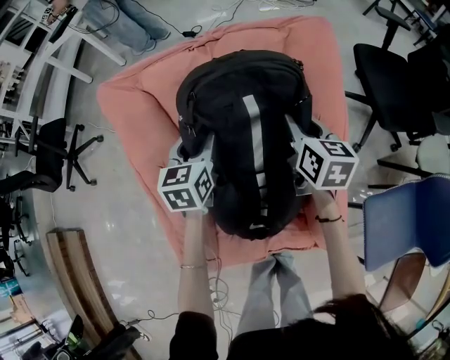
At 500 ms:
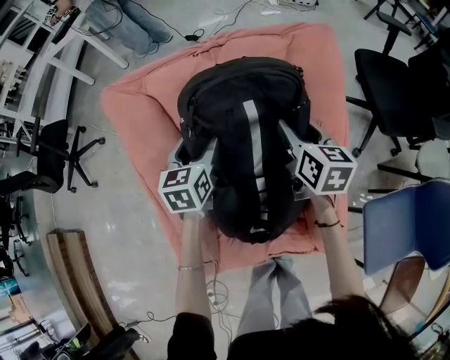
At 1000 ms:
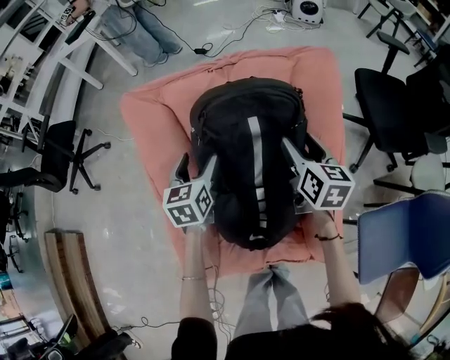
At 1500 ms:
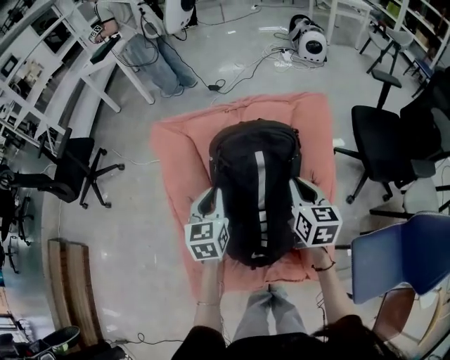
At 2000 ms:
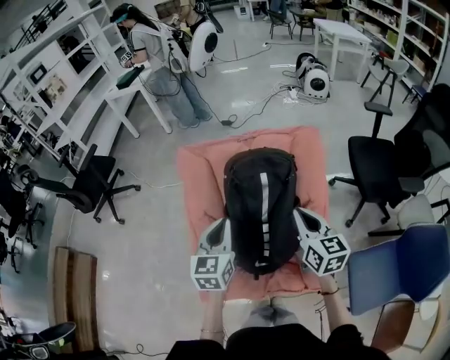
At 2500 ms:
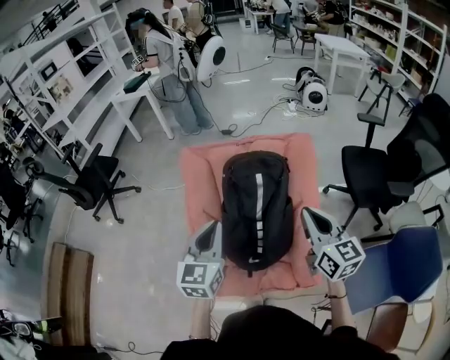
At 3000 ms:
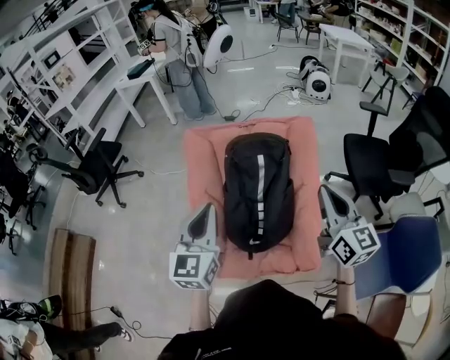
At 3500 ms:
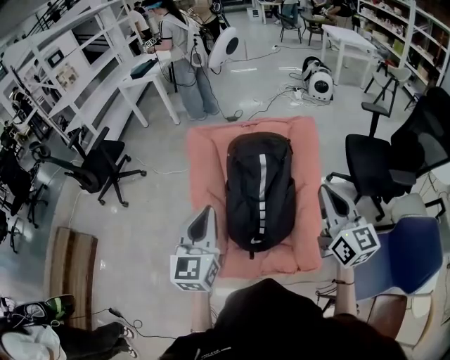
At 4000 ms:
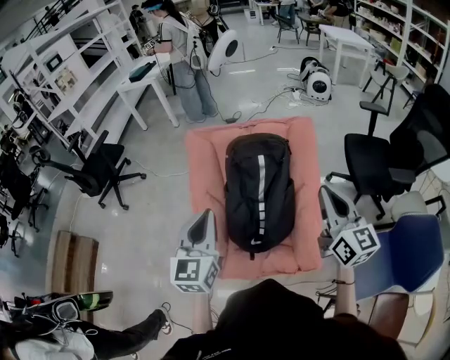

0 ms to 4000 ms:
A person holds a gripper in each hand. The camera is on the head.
0 ms to 2000 ms: Both grippers travel together upward and backward, approximately 25 cm. The right gripper opens, then closes again; the left gripper closes.
2000 ms to 4000 ms: The left gripper is displaced backward and upward by roughly 15 cm; the right gripper shifts about 20 cm upward, backward and to the right.

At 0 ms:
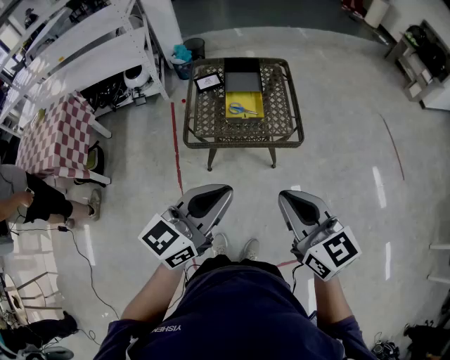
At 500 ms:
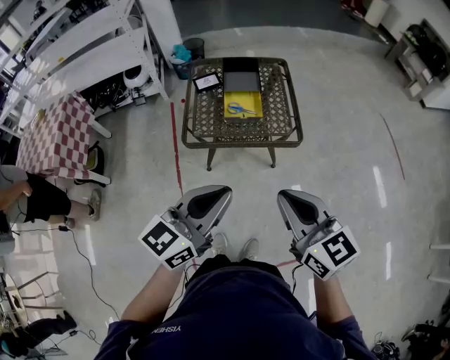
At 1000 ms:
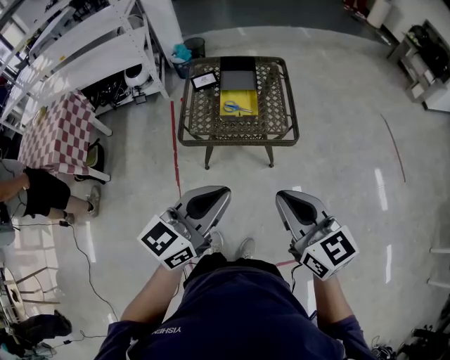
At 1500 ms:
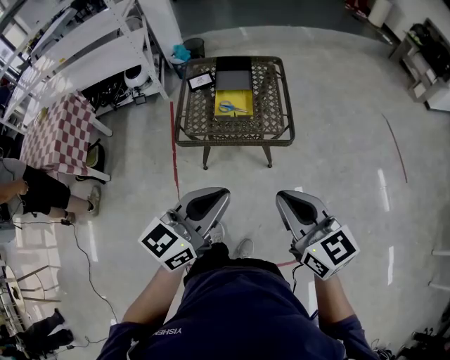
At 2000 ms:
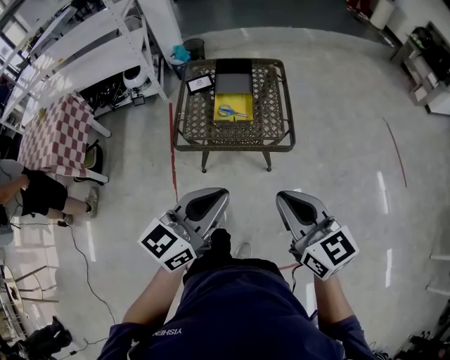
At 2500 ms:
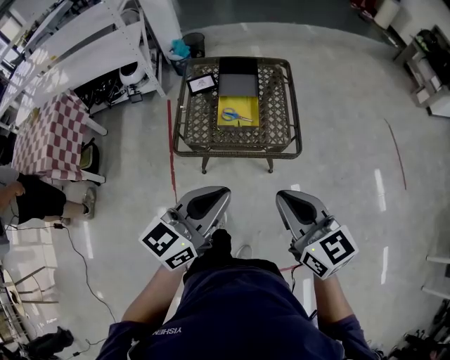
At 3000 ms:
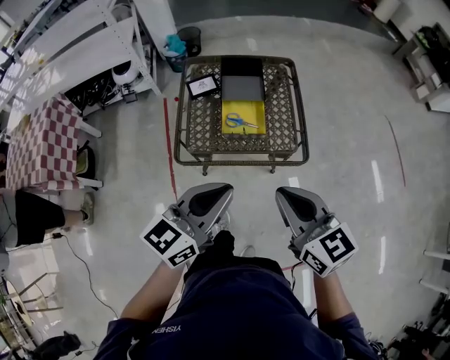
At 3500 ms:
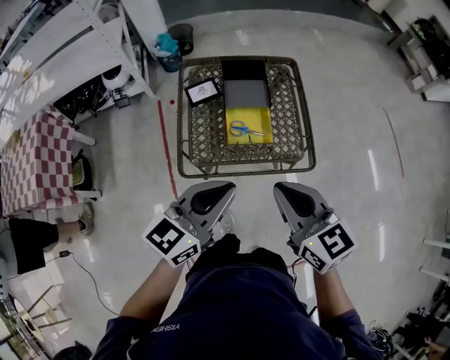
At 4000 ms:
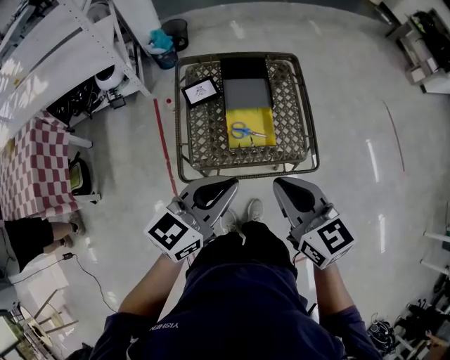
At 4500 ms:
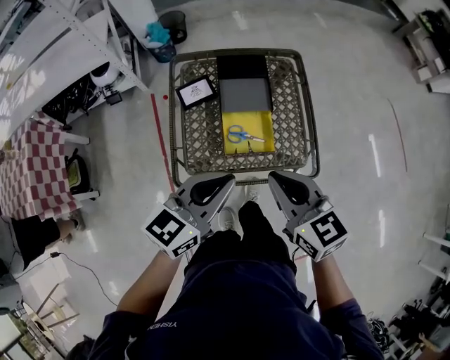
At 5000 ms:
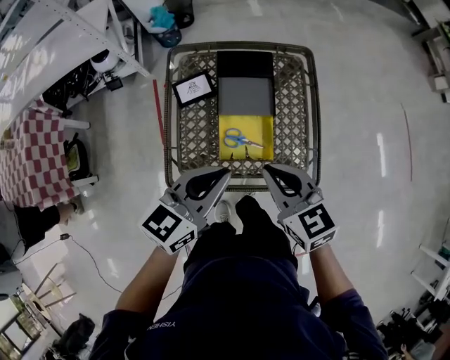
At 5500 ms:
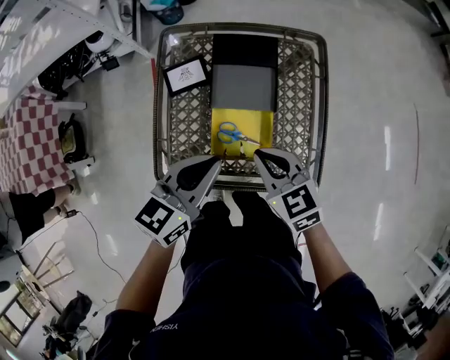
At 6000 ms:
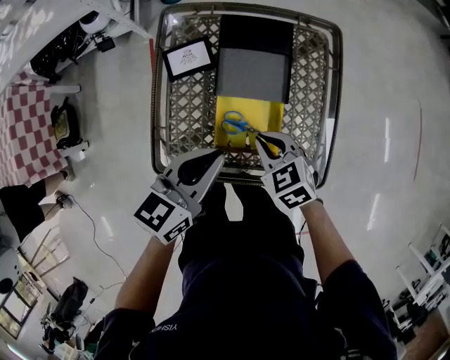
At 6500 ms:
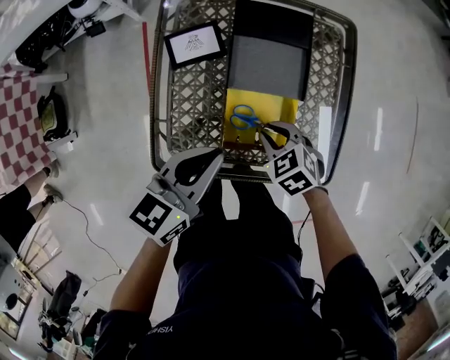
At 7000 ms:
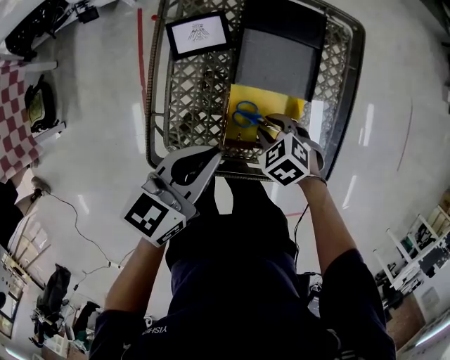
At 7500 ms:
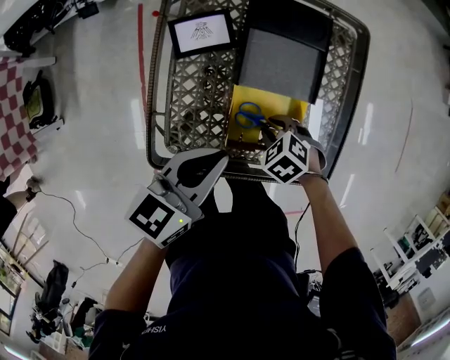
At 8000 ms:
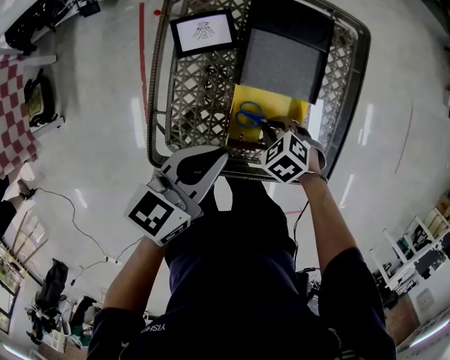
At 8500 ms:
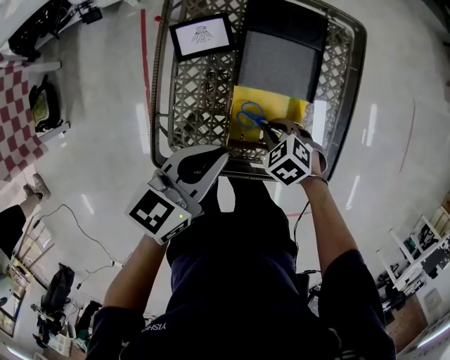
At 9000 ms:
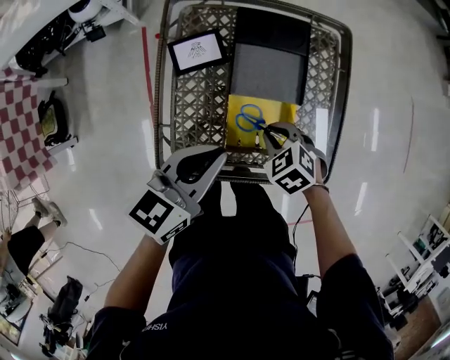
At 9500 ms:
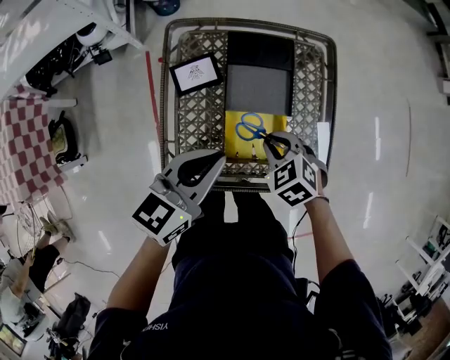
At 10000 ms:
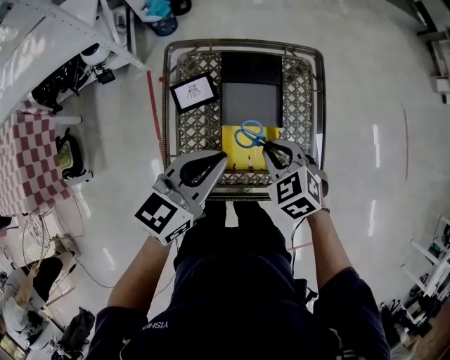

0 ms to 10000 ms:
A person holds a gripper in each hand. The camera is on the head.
0 ms to 2000 ms: Both grippers travel together to the right, some 10 cm.
2000 ms to 4000 ms: The grippers both shift forward and to the left by roughly 30 cm.
4000 ms to 6000 ms: The right gripper moves downward and forward, some 35 cm, and tips its fingers downward by approximately 30 degrees, while the left gripper travels forward and downward by about 25 cm, and rotates some 20 degrees.
6000 ms to 8000 ms: The right gripper travels downward by some 15 cm, and turns by roughly 30 degrees; the left gripper shifts by some 5 cm.
8000 ms to 10000 ms: The right gripper is displaced upward by approximately 20 cm, and changes its angle by about 30 degrees. Meanwhile the left gripper goes roughly 15 cm upward.

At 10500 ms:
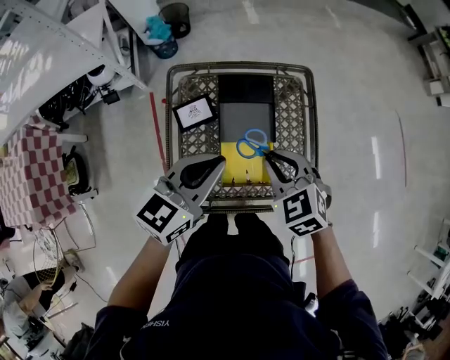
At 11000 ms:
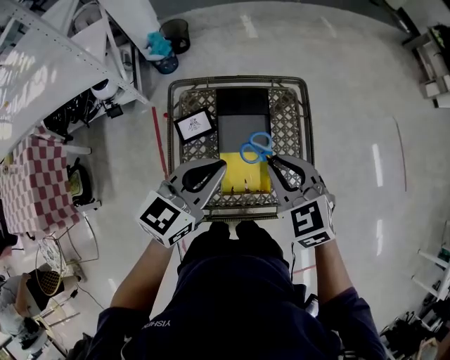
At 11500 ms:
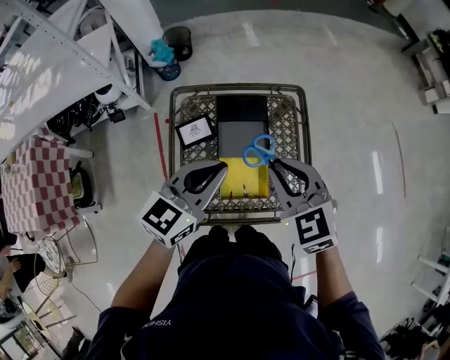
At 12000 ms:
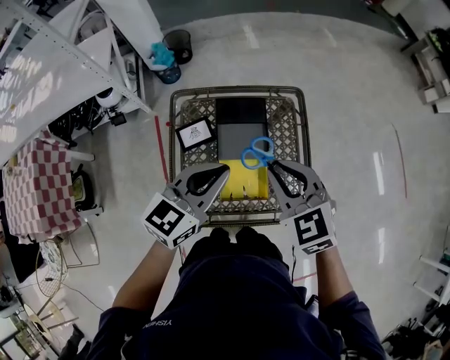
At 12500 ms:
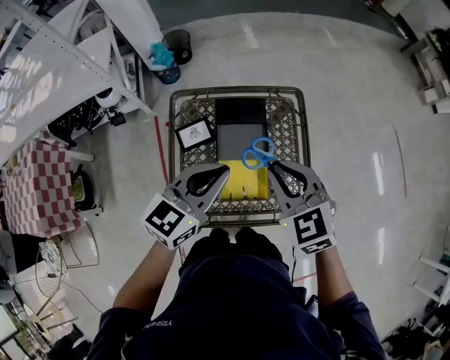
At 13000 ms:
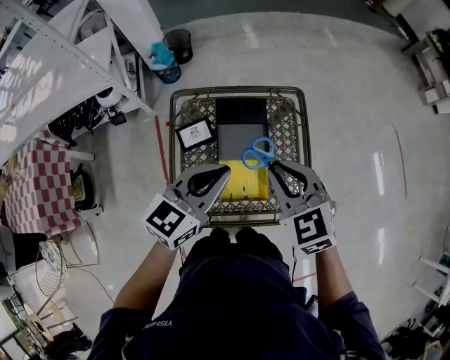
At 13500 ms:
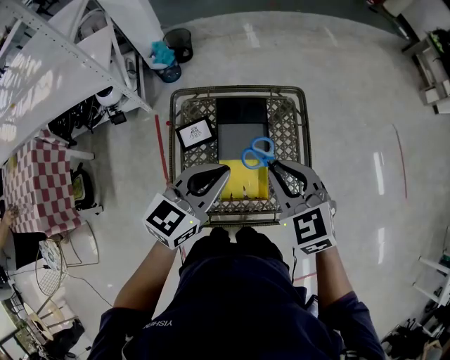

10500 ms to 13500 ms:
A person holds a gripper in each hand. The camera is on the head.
10500 ms to 12000 ms: The right gripper travels upward by some 10 cm, while the left gripper changes place by some 5 cm.
12000 ms to 13500 ms: Both grippers stay about where they are.

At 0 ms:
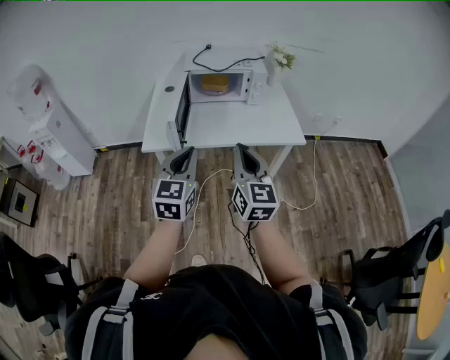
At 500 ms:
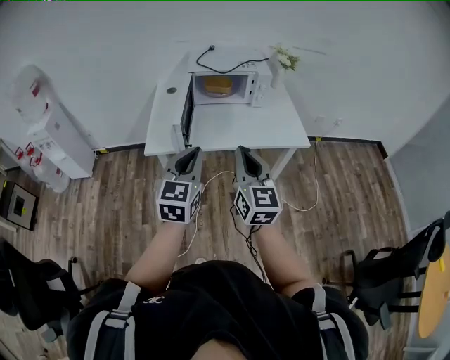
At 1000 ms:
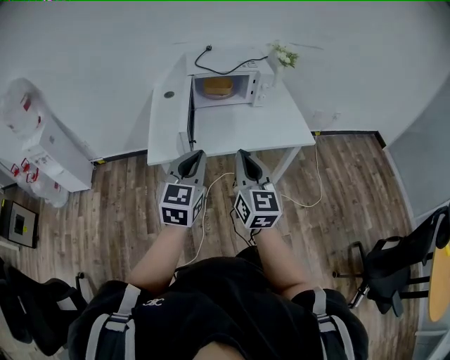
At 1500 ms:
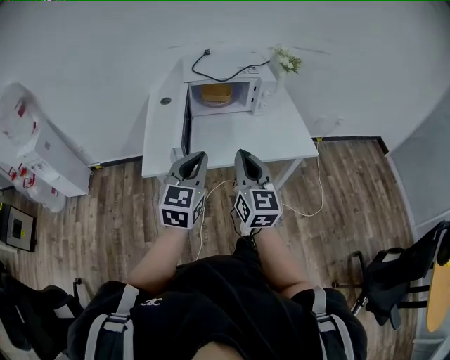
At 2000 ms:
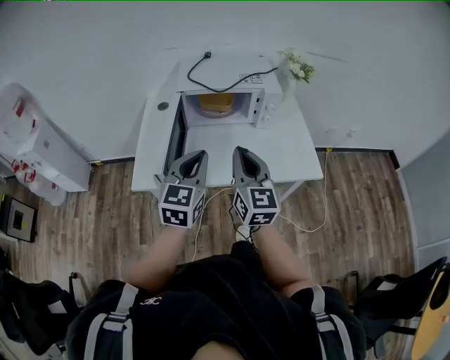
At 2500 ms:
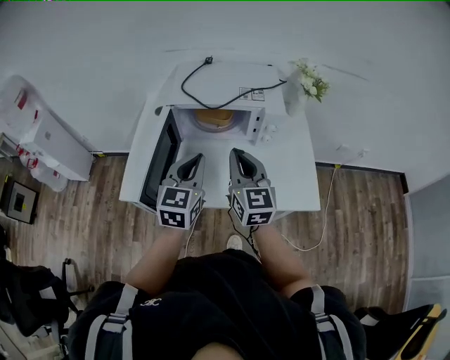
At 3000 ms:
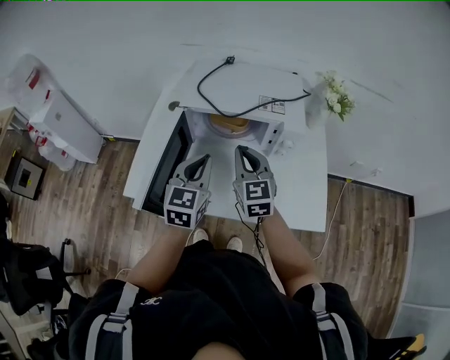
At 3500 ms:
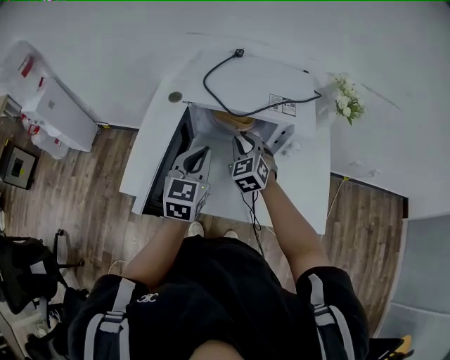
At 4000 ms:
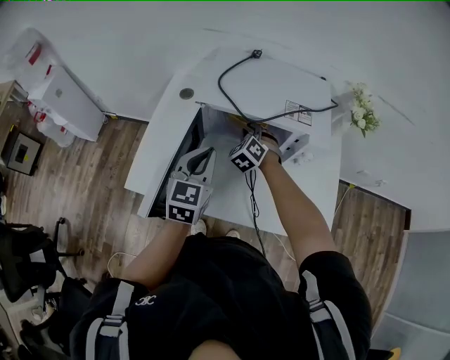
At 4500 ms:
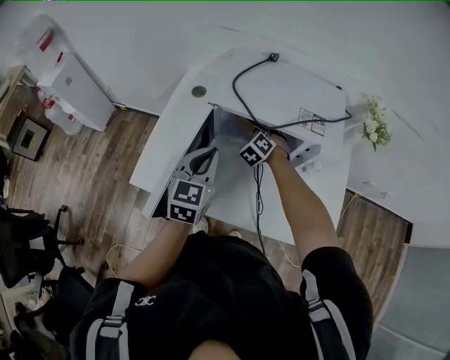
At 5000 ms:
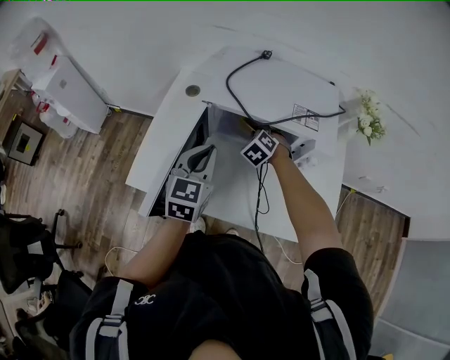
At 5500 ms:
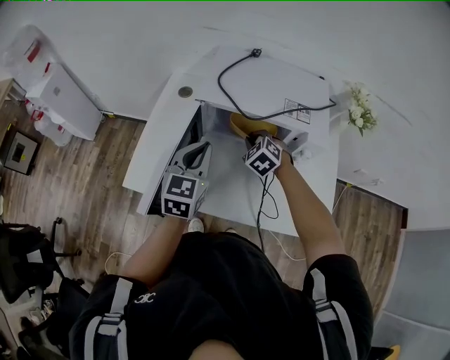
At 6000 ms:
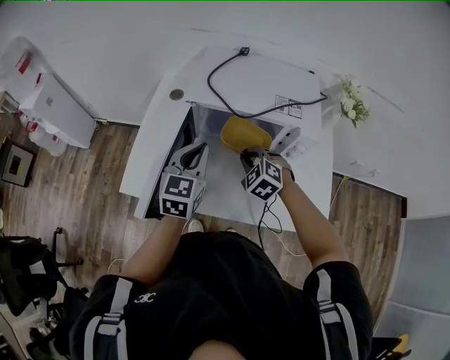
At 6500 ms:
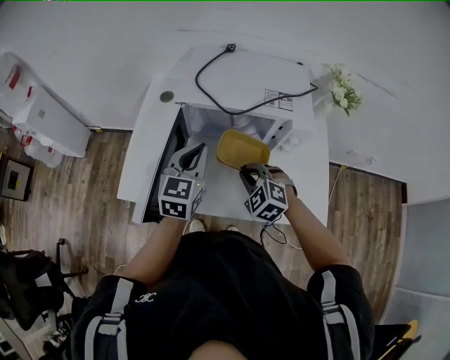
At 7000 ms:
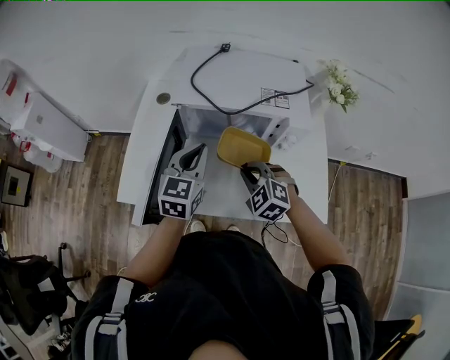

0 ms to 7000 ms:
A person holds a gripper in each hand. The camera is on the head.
0 ms to 2000 ms: The grippers both shift forward by roughly 25 cm.
2000 ms to 3500 ms: The left gripper moves forward, about 25 cm; the right gripper goes approximately 35 cm forward and downward, and swivels some 50 degrees.
3500 ms to 5000 ms: The right gripper heads downward and forward, covering about 15 cm, and rotates some 30 degrees.
5000 ms to 7000 ms: The right gripper travels backward by some 20 cm.

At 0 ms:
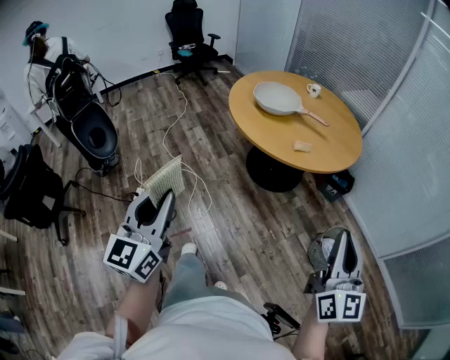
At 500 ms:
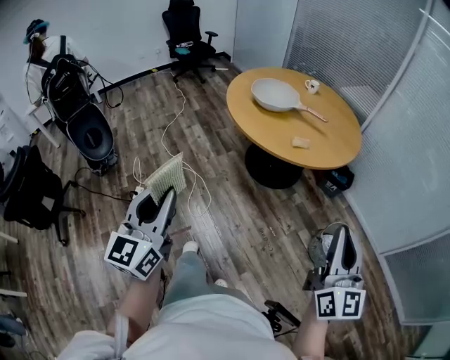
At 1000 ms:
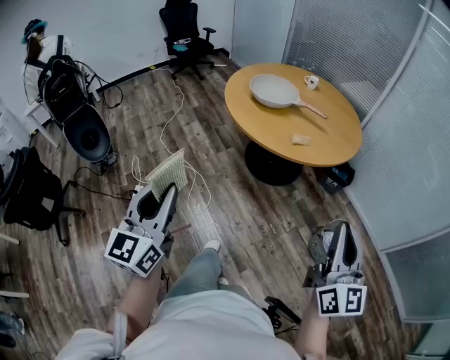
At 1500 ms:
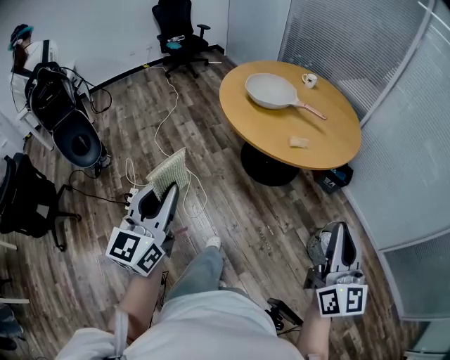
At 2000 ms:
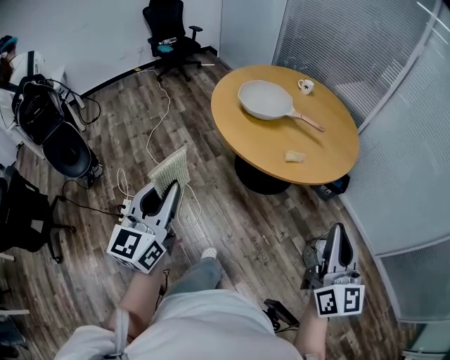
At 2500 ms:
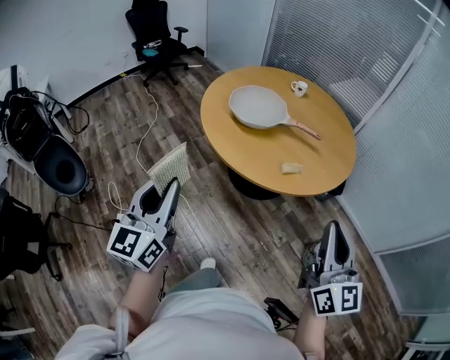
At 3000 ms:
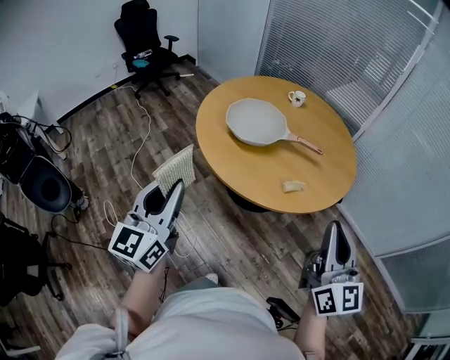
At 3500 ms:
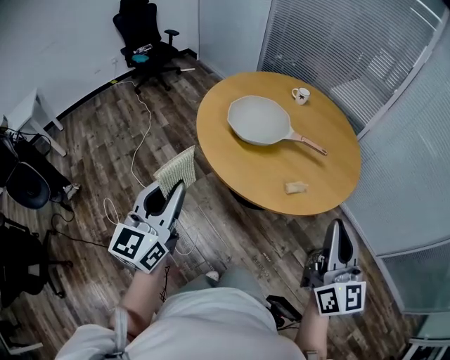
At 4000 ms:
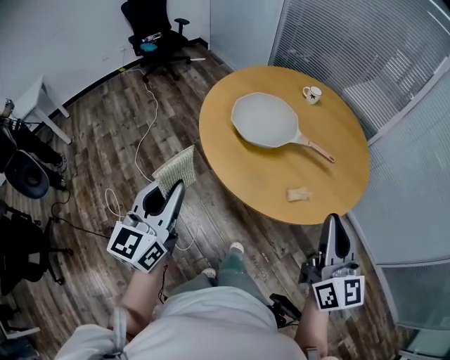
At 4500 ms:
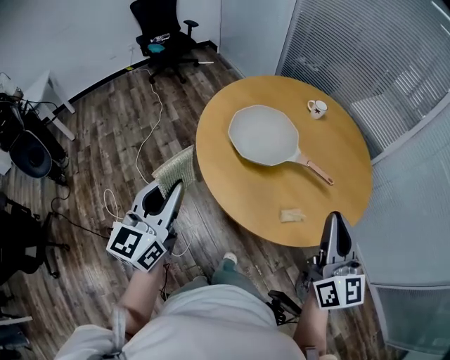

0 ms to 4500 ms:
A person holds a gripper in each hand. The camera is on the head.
0 ms to 2000 ms: The two grippers go some 20 cm forward.
2000 ms to 4500 ms: The two grippers go about 35 cm forward.
